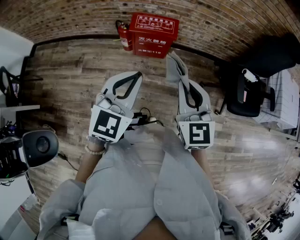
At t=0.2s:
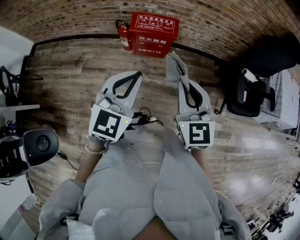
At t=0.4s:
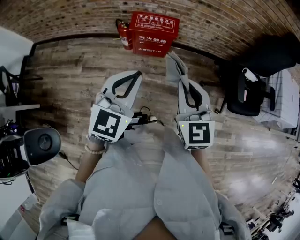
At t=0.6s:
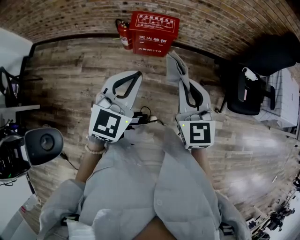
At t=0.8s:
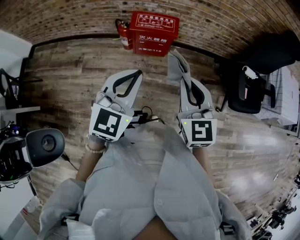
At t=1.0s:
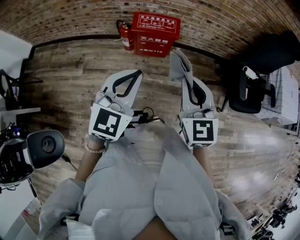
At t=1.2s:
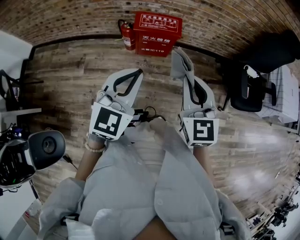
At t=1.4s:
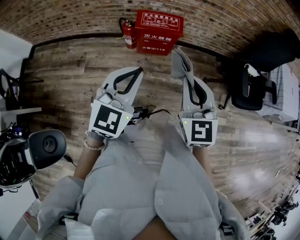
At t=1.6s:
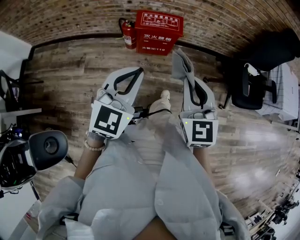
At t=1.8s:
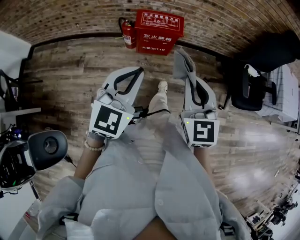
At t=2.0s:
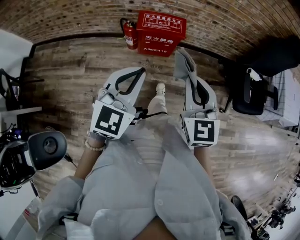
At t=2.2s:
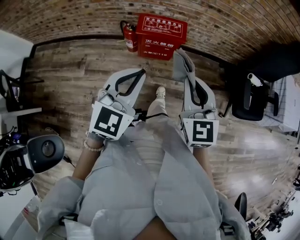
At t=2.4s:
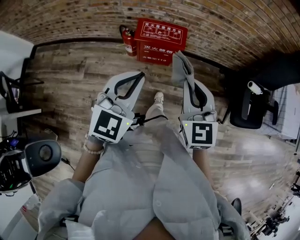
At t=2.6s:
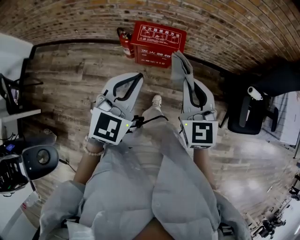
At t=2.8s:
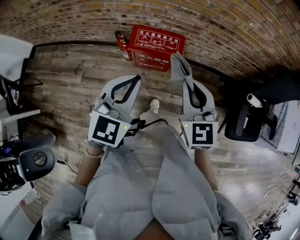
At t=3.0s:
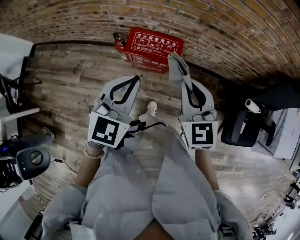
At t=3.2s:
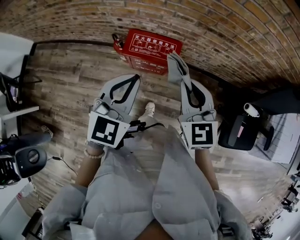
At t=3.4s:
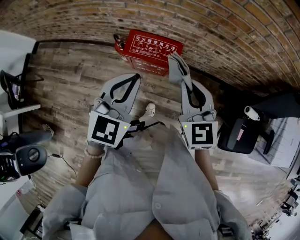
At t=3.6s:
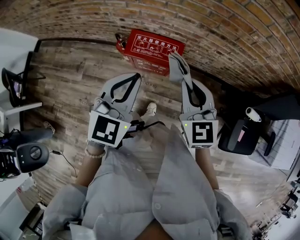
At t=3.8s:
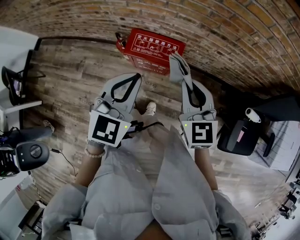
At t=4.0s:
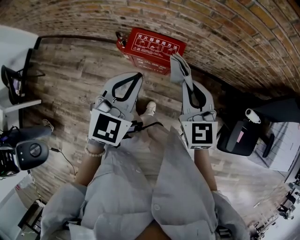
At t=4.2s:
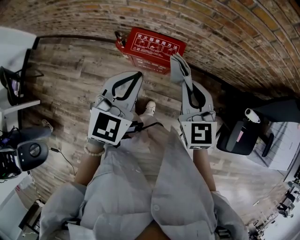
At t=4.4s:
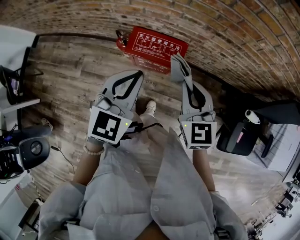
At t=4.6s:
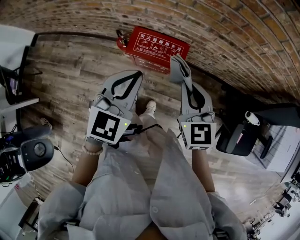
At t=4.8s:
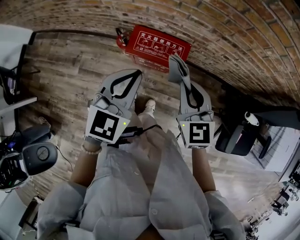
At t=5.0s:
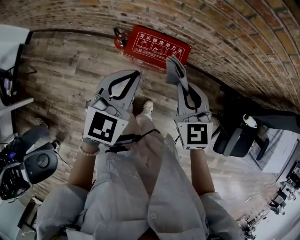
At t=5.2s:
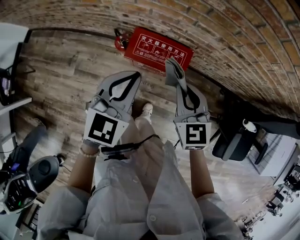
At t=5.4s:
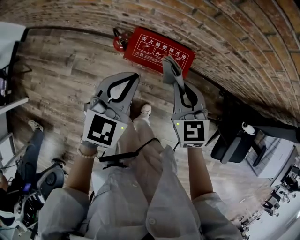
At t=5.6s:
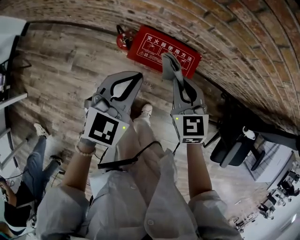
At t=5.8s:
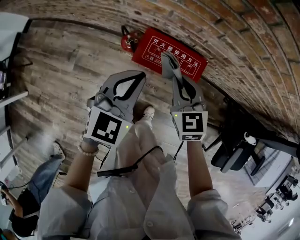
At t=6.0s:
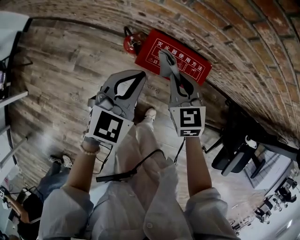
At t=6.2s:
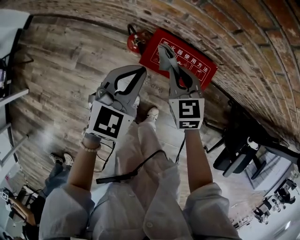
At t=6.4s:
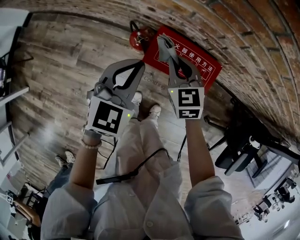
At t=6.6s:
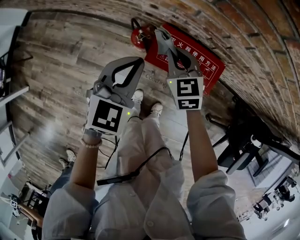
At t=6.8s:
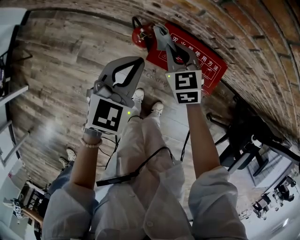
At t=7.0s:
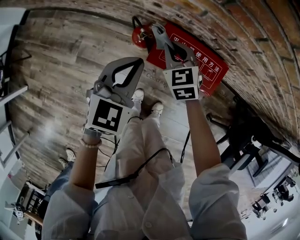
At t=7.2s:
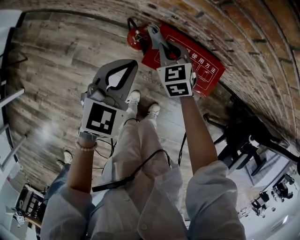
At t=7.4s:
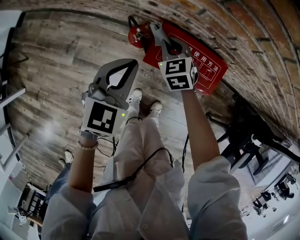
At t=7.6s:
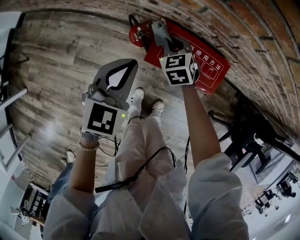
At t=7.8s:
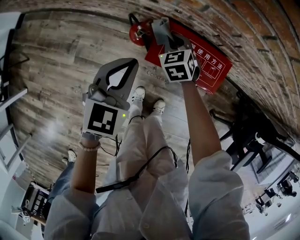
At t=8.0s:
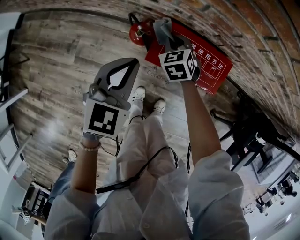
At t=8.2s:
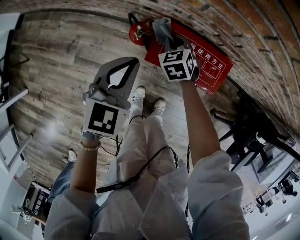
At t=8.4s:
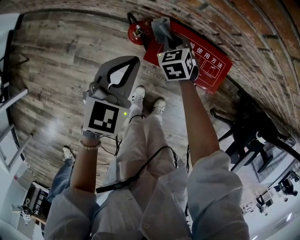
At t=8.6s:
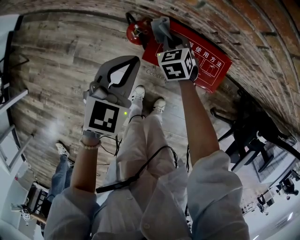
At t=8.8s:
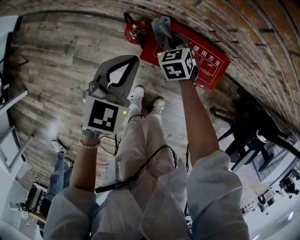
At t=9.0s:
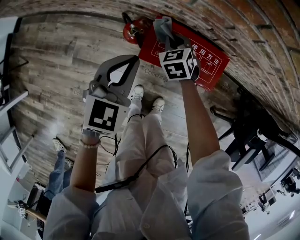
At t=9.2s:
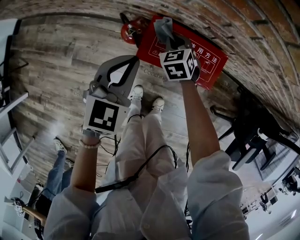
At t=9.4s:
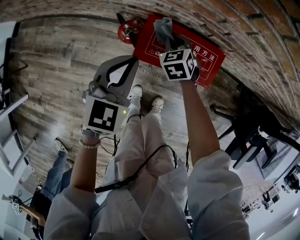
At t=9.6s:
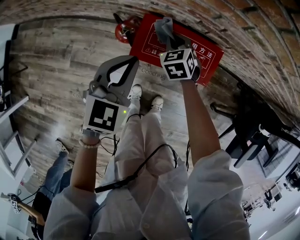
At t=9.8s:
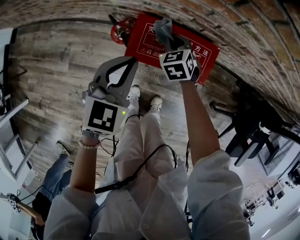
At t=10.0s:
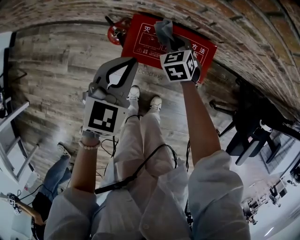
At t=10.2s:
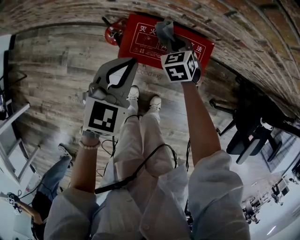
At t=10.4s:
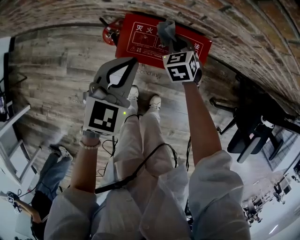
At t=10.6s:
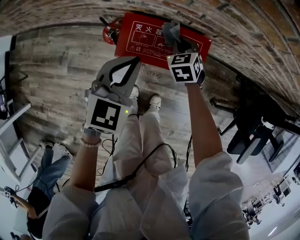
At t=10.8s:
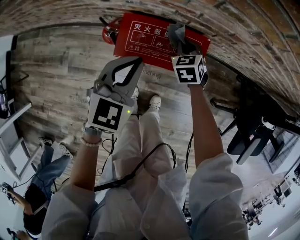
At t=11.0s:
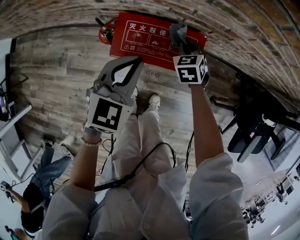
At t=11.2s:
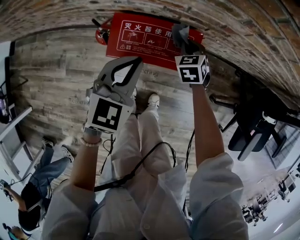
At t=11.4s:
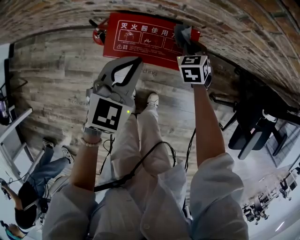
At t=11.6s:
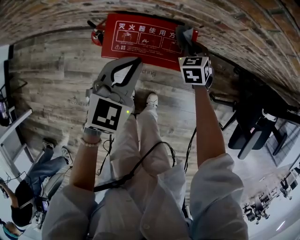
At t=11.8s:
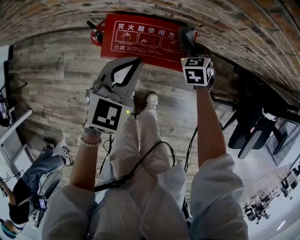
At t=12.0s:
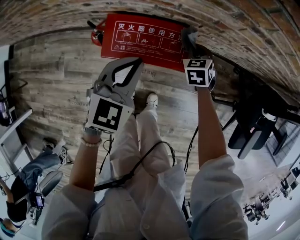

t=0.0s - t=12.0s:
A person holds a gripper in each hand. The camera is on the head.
t=0.0s - t=1.6s: The two grippers go approximately 5 cm to the left.
t=1.6s - t=3.0s: The two grippers go approximately 30 cm forward.
t=3.0s - t=4.4s: Both grippers move forward, roughly 5 cm.
t=4.4s - t=6.0s: The left gripper moves downward, forward and to the left, about 25 cm, while the right gripper shifts some 30 cm downward, to the left and forward.
t=6.0s - t=7.6s: The right gripper is displaced downward, forward and to the left by some 20 cm; the left gripper moves downward and to the left, roughly 10 cm.
t=7.6s - t=9.0s: The grippers stay close to where they were, moving slightly.
t=9.0s - t=10.4s: Both grippers travel together to the right, some 10 cm.
t=10.4s - t=12.0s: The right gripper goes some 15 cm to the right; the left gripper goes approximately 10 cm to the right.

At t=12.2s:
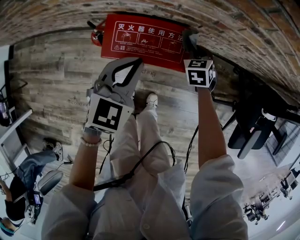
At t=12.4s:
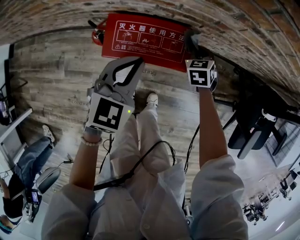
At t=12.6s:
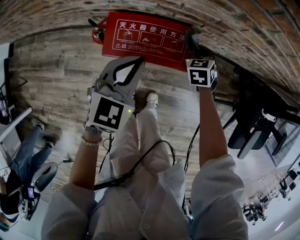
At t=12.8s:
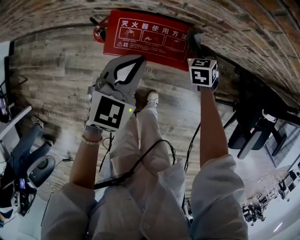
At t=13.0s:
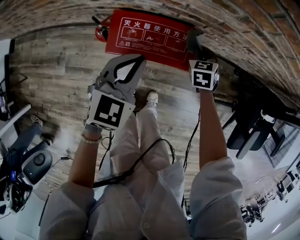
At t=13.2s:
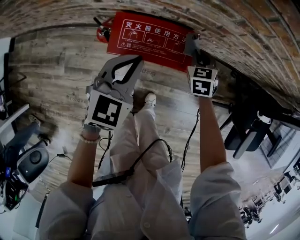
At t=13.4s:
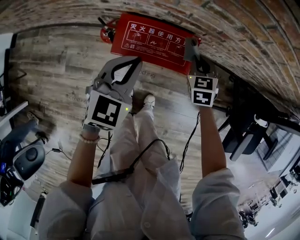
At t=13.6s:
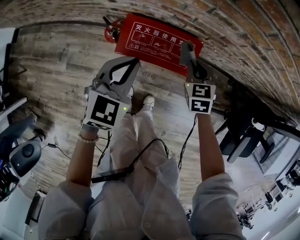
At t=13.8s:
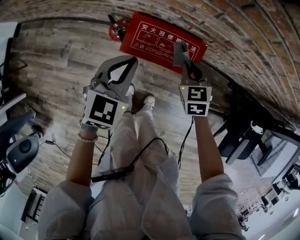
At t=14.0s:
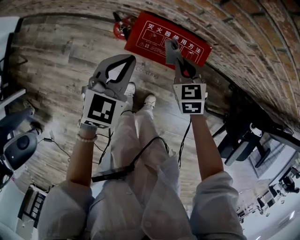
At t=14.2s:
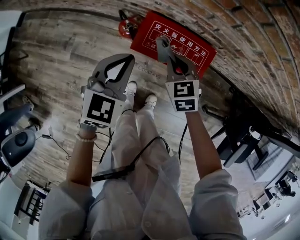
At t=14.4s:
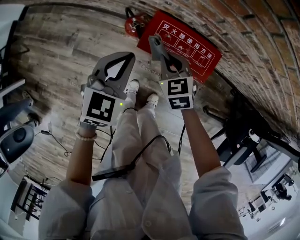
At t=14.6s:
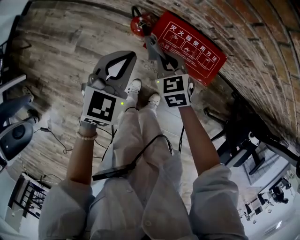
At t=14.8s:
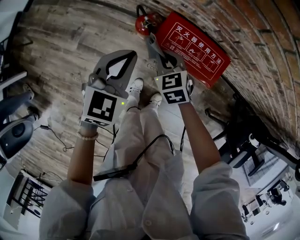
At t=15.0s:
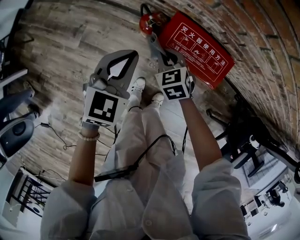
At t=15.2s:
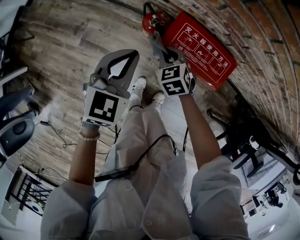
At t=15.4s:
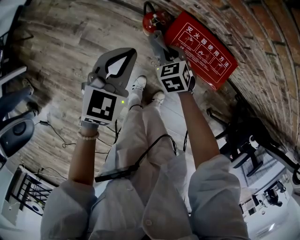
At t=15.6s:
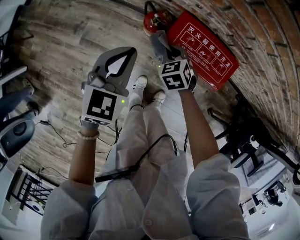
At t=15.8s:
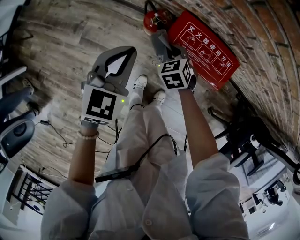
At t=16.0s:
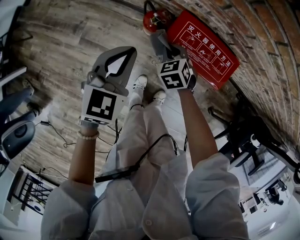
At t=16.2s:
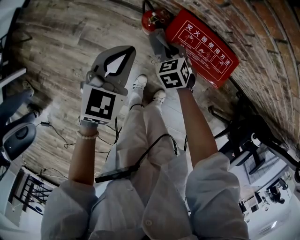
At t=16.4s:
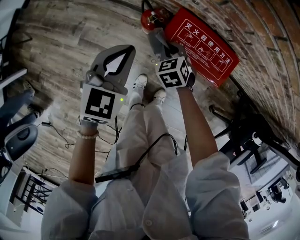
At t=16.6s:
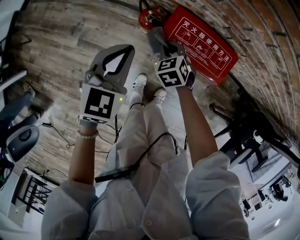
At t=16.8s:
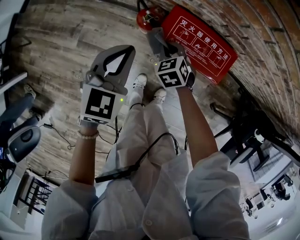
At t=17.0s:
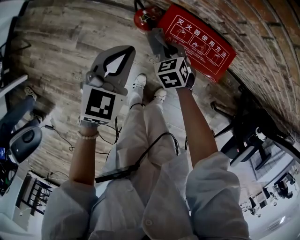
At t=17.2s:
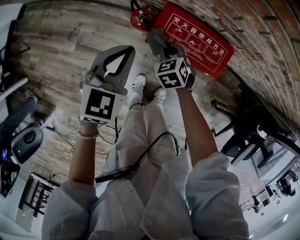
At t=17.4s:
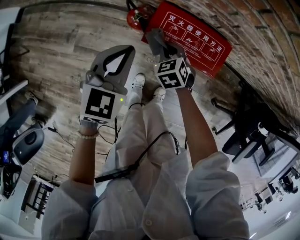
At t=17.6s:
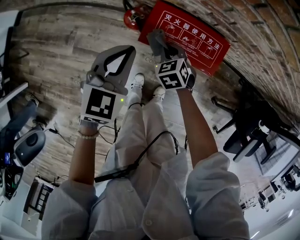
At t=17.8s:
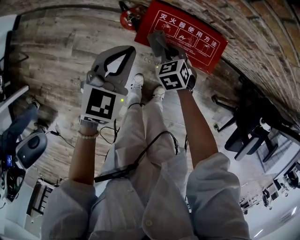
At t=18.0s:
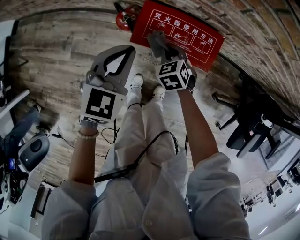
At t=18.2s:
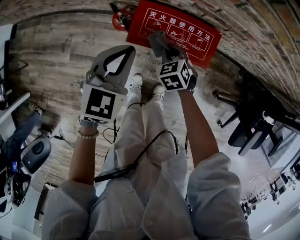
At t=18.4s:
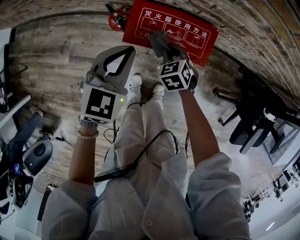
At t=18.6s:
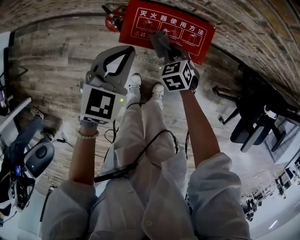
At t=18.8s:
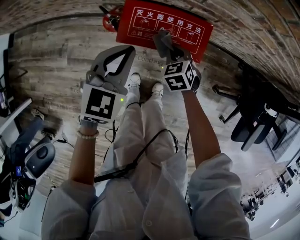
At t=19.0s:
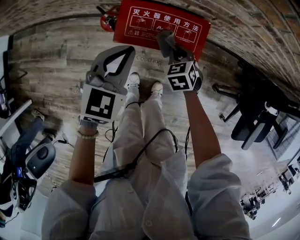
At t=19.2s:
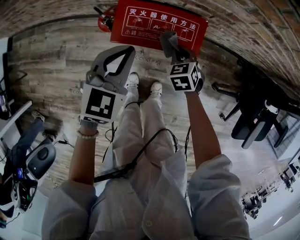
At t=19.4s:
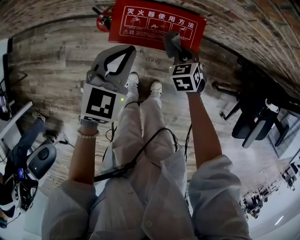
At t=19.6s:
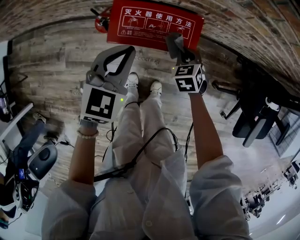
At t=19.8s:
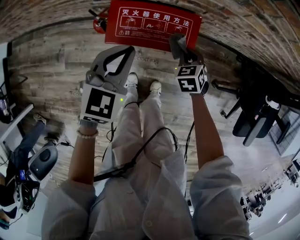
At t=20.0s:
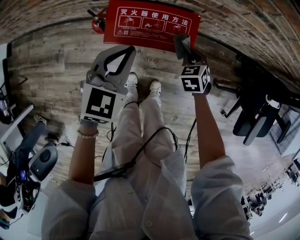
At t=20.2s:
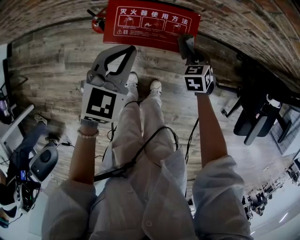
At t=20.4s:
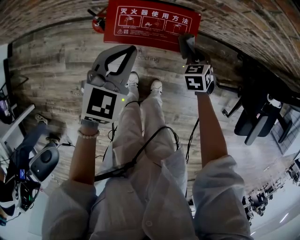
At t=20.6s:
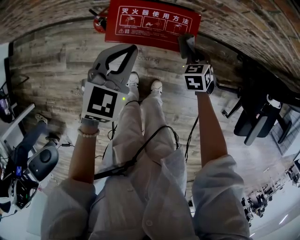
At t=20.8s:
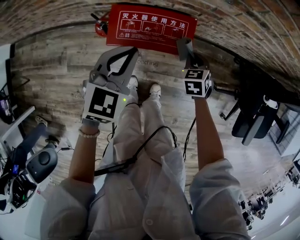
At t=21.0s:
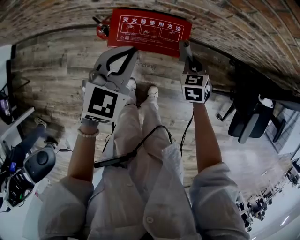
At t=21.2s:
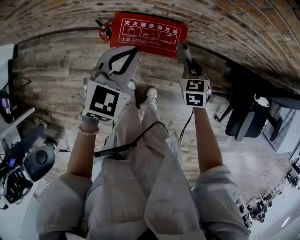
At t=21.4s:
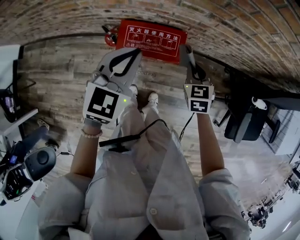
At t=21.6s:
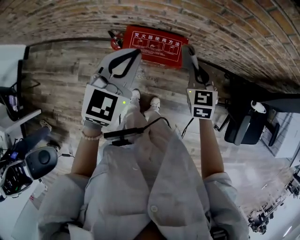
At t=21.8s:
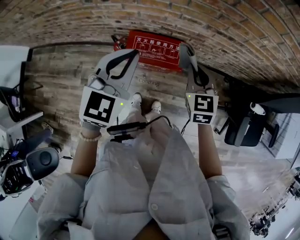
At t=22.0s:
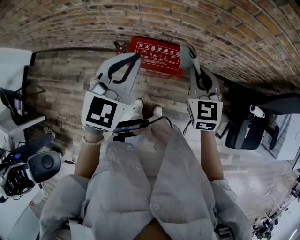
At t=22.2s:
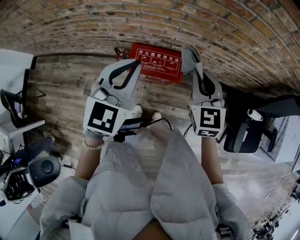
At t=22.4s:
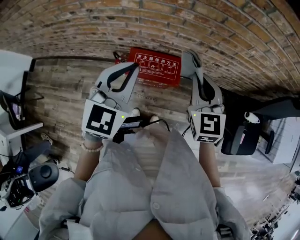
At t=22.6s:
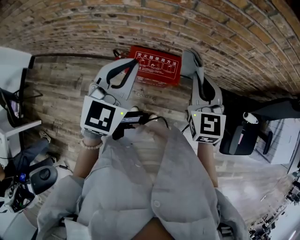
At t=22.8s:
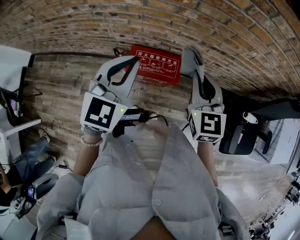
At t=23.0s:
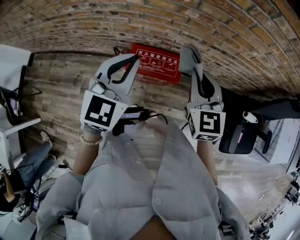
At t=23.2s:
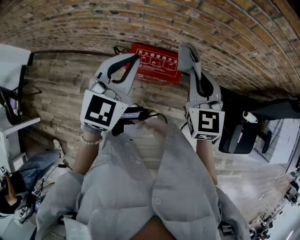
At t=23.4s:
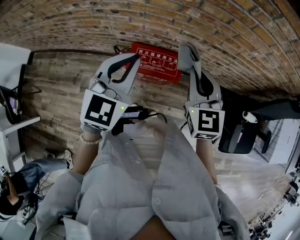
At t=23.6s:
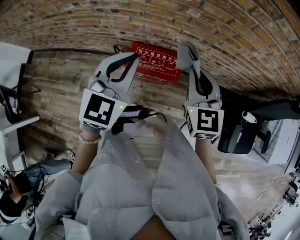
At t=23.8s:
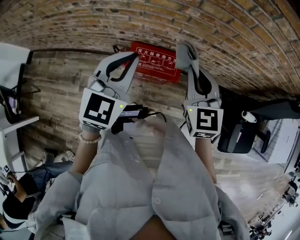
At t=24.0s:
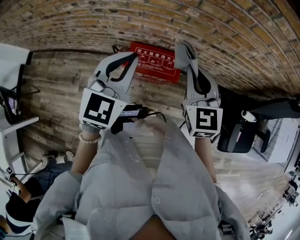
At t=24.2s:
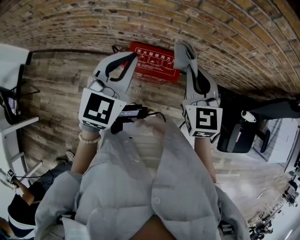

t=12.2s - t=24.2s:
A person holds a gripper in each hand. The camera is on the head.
t=12.2s - t=13.8s: The right gripper goes about 15 cm upward, to the left and backward, while the left gripper goes some 10 cm to the left.
t=13.8s - t=15.2s: The right gripper moves to the left, approximately 25 cm, and rotates approximately 20 degrees. Meanwhile the left gripper travels to the left by some 15 cm.
t=15.2s - t=16.6s: There are only small adjustments of the grippers.
t=16.6s - t=18.2s: Both grippers move to the right, approximately 10 cm.
t=18.2s - t=19.8s: The right gripper shifts some 15 cm to the right. Meanwhile the left gripper moves to the right, roughly 10 cm.
t=19.8s - t=21.2s: The grippers both shift upward by roughly 15 cm.
t=21.2s - t=22.6s: The right gripper shifts approximately 30 cm upward, and turns by about 30 degrees; the left gripper moves upward, roughly 20 cm.
t=22.6s - t=24.2s: The grippers move only a little.
